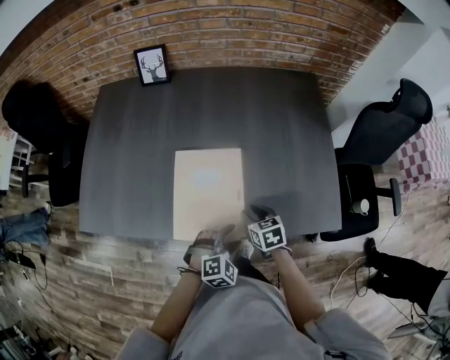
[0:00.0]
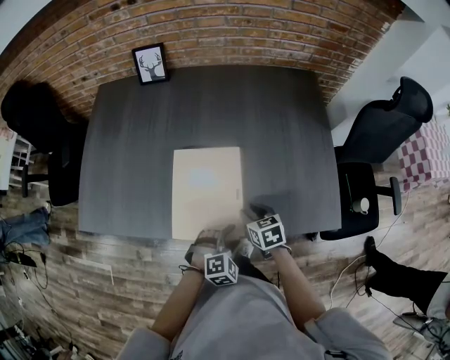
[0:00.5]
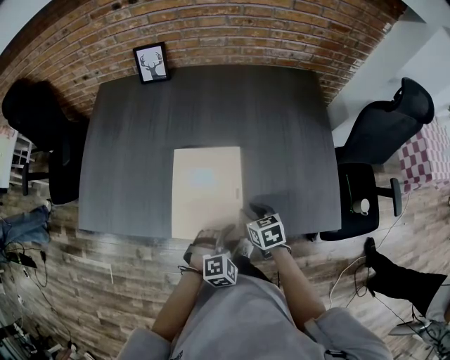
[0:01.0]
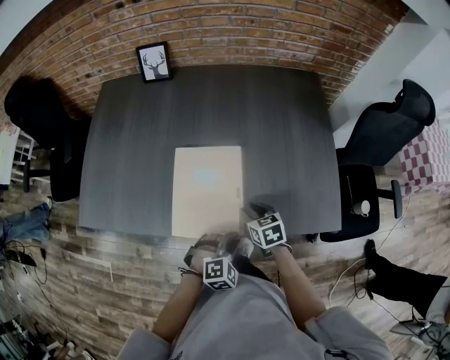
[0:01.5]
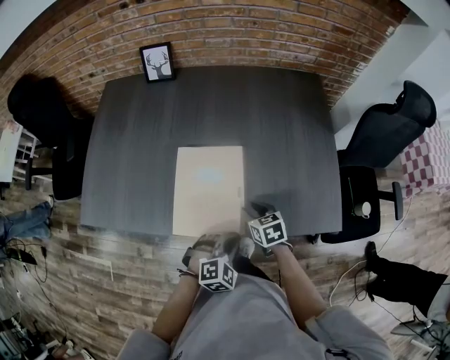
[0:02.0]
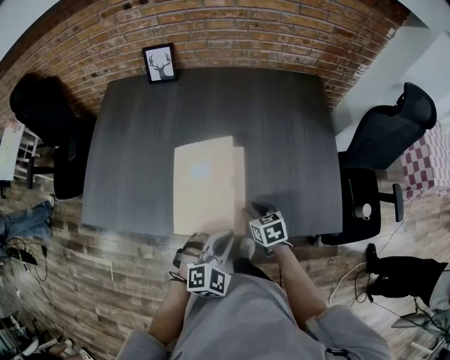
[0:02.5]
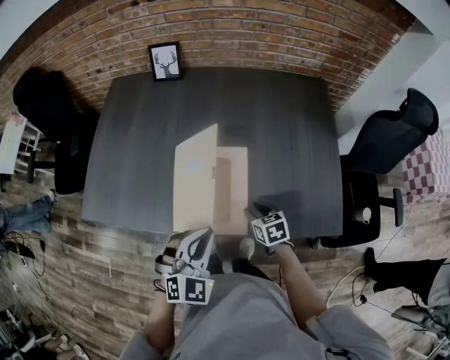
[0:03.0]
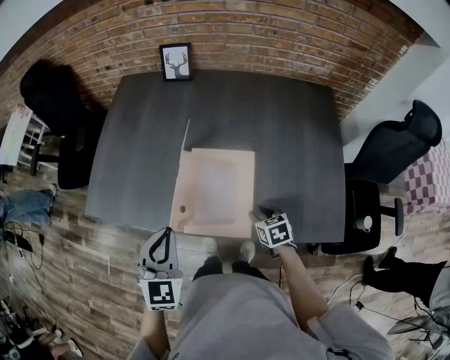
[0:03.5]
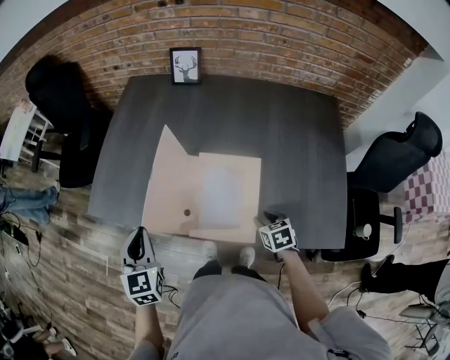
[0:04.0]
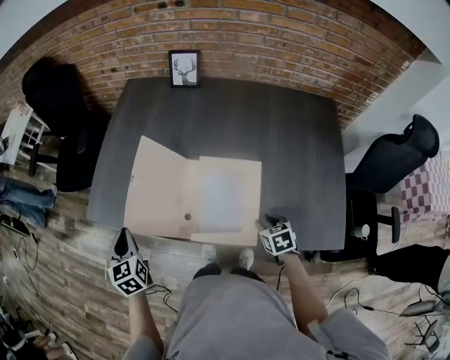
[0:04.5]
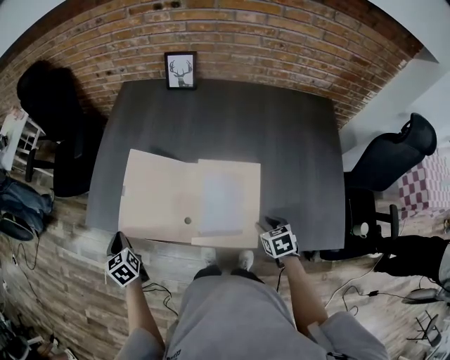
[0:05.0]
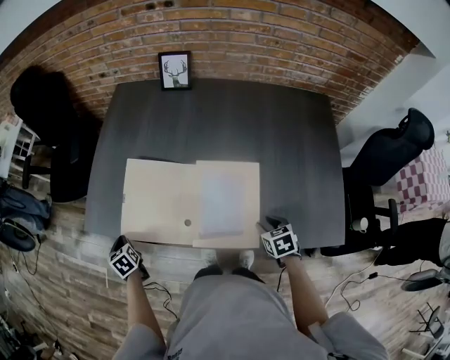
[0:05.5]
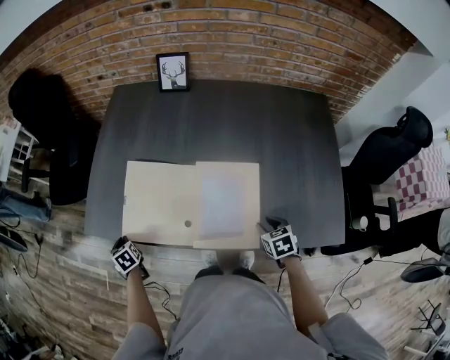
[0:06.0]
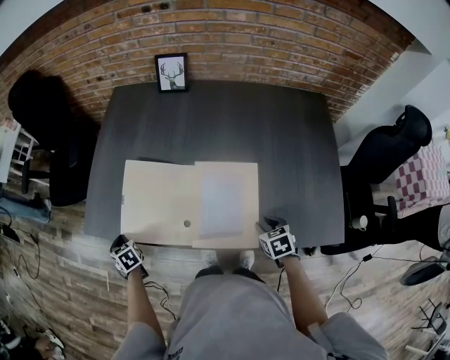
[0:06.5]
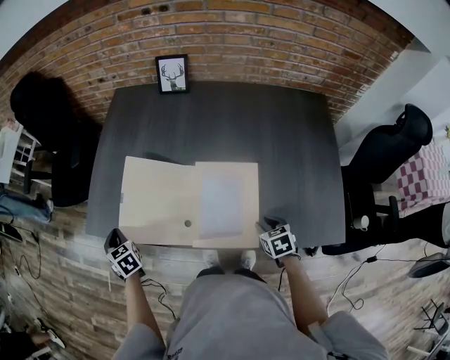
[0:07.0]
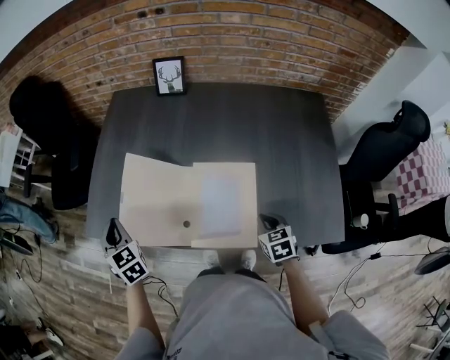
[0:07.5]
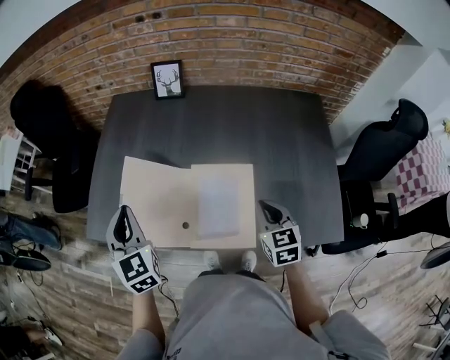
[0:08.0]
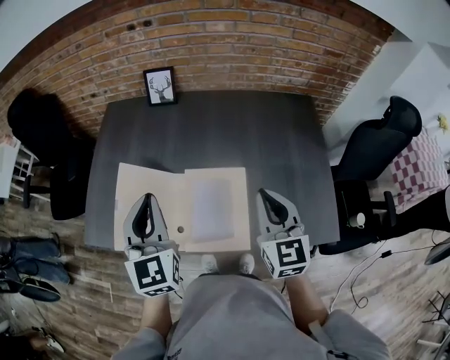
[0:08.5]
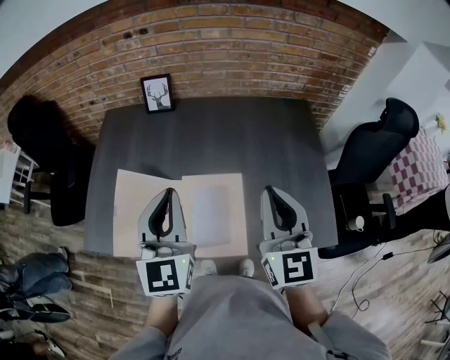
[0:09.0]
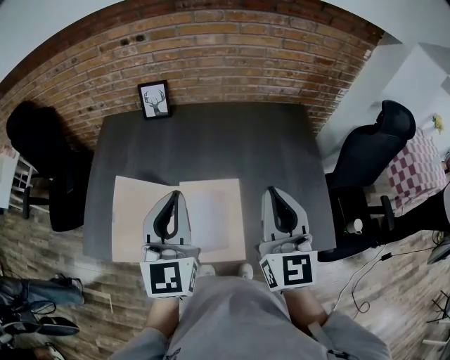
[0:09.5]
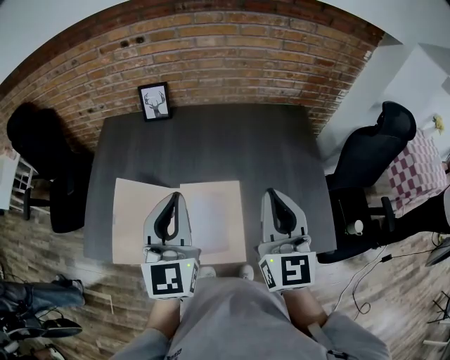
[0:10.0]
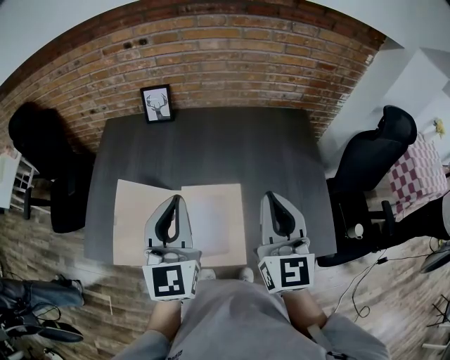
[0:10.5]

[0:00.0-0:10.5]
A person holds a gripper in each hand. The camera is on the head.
0:00.0 to 0:02.0: The left gripper closes its fingers.
0:02.0 to 0:04.0: The left gripper moves about 35 cm, and rotates approximately 70 degrees.
0:04.0 to 0:06.5: The left gripper shifts some 30 cm downward, to the left and forward, and rotates roughly 40 degrees.
0:06.5 to 0:08.5: Both grippers move upward, approximately 30 cm. The left gripper points its fingers about 40 degrees further upward. Meanwhile the right gripper points its fingers approximately 50 degrees further upward, and closes.
0:08.5 to 0:10.5: The left gripper shifts some 10 cm to the right. Meanwhile the right gripper heads upward, covering some 10 cm.

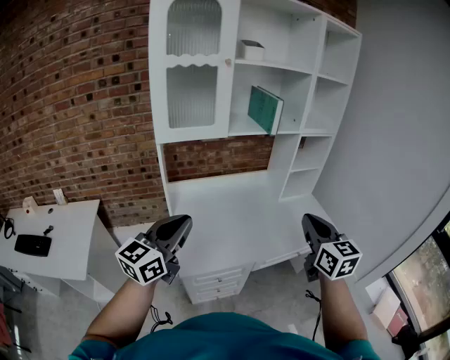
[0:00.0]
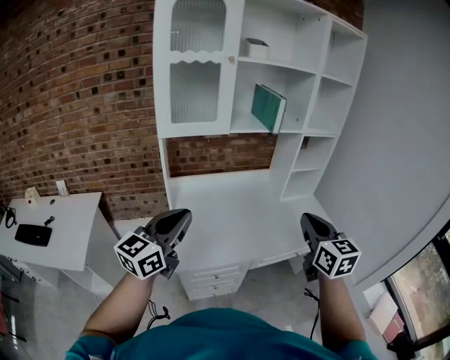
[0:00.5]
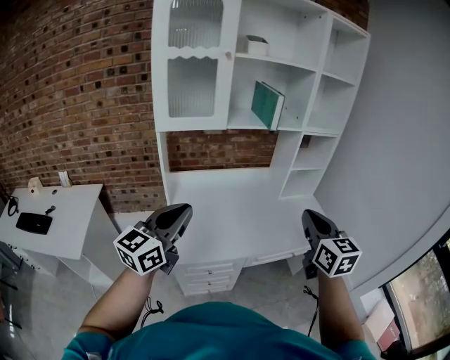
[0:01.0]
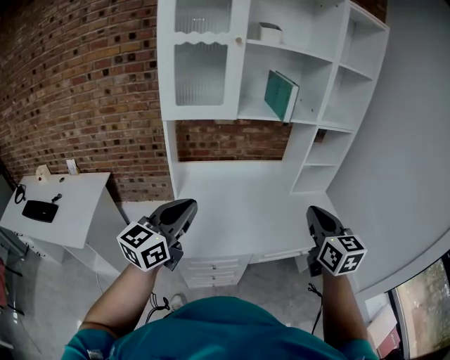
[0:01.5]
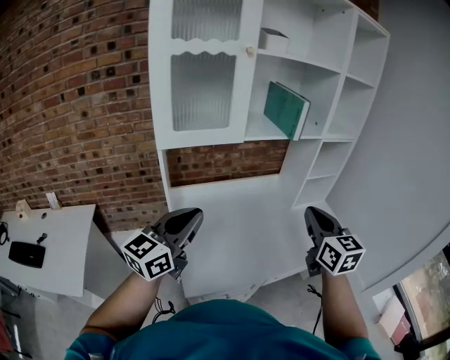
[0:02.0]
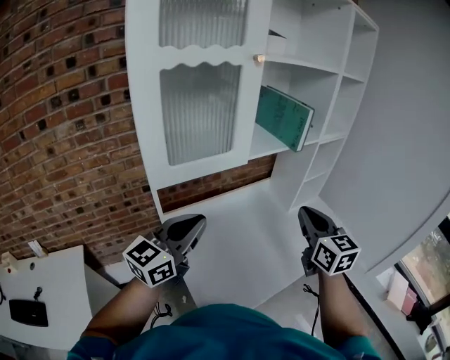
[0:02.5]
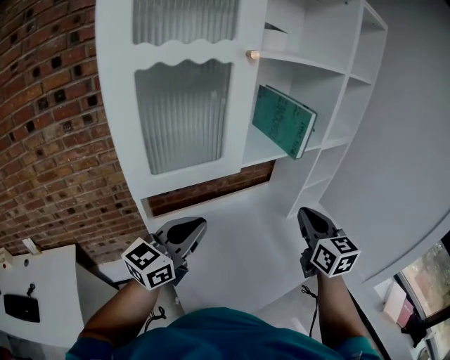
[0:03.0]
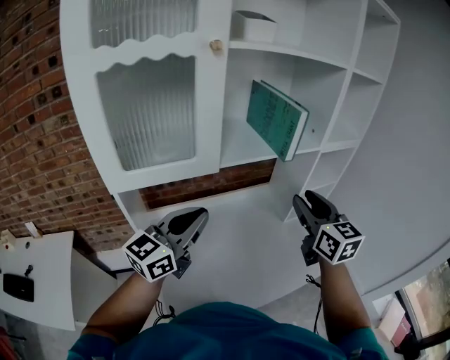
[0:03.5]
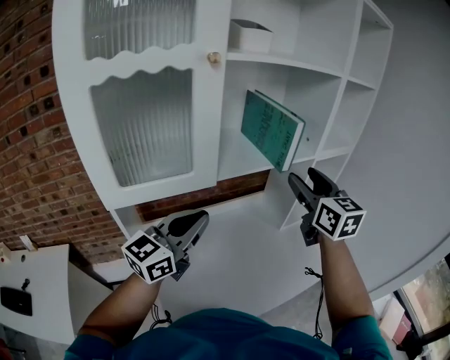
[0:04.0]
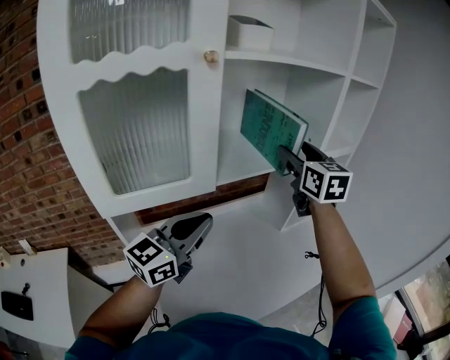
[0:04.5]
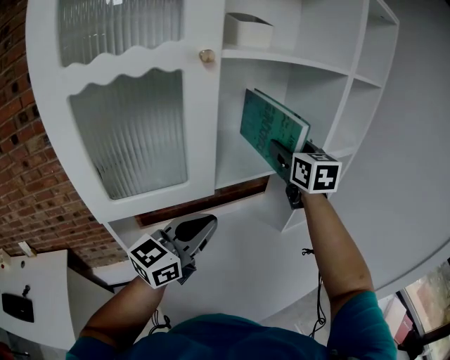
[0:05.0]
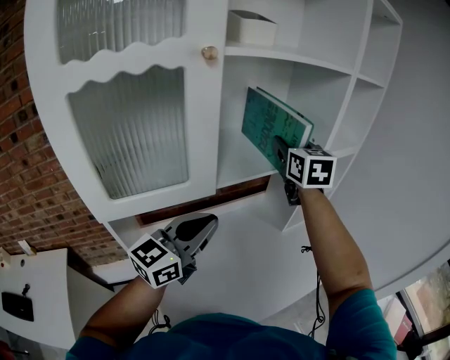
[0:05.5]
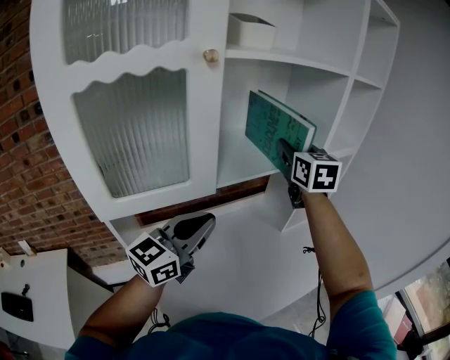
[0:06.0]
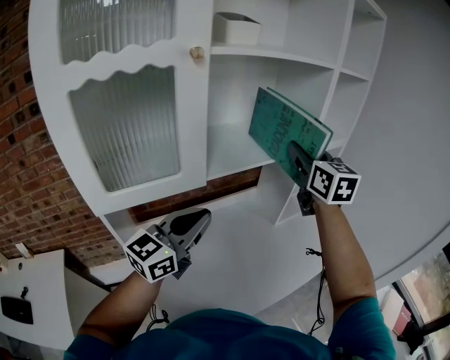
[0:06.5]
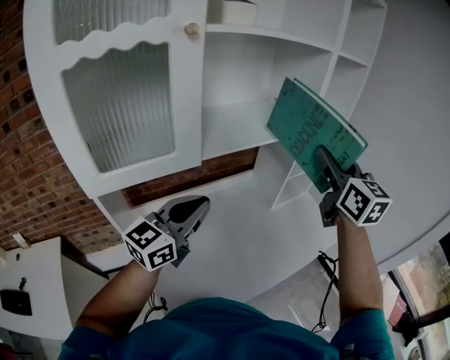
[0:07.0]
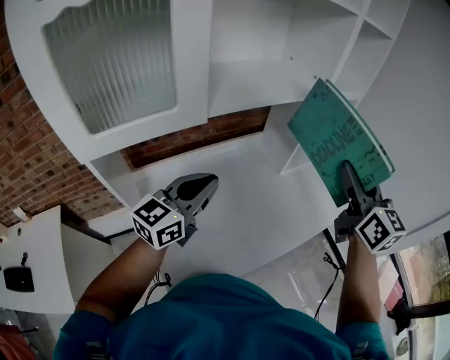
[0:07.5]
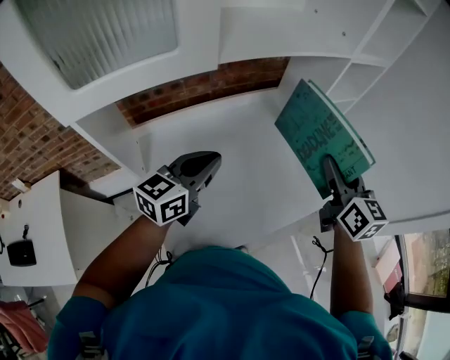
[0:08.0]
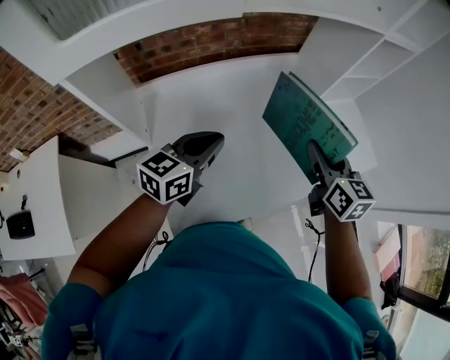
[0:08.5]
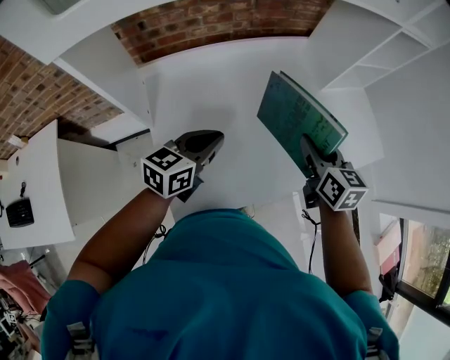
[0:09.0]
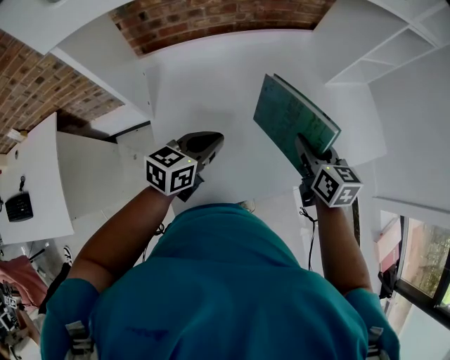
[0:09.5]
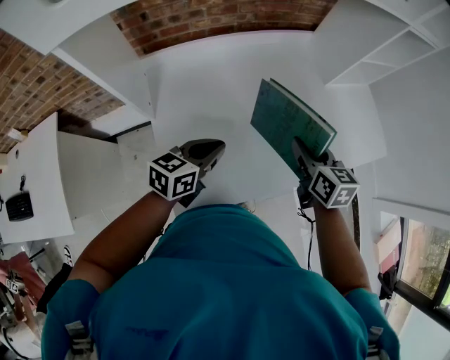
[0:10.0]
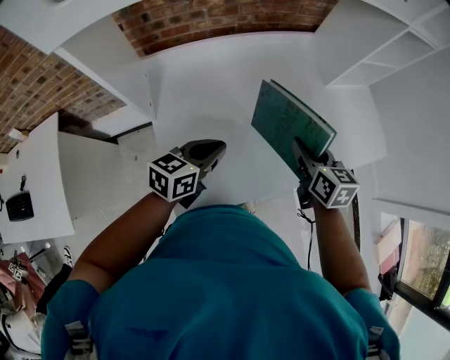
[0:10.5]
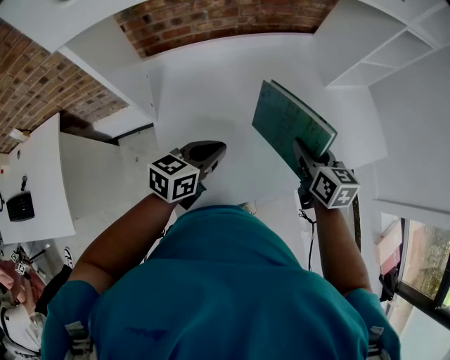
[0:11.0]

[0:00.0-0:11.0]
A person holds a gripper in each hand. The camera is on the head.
0:00.0 to 0:02.0: The left gripper moves forward, approximately 10 cm, while the right gripper heads forward and to the left, covering about 15 cm.
0:02.0 to 0:03.5: Both grippers travel together forward, roughly 20 cm. The right gripper opens.
0:03.5 to 0:05.5: The left gripper heads forward, covering some 5 cm; the right gripper moves forward, upward and to the left, approximately 20 cm.
0:05.5 to 0:07.5: The left gripper heads downward, covering approximately 10 cm. Meanwhile the right gripper moves to the right and backward, roughly 25 cm.
0:07.5 to 0:09.0: The two grippers go approximately 25 cm downward. The left gripper changes its angle by approximately 30 degrees; the right gripper swivels some 30 degrees.
0:09.0 to 0:11.0: The grippers stay close to where they were, moving slightly.

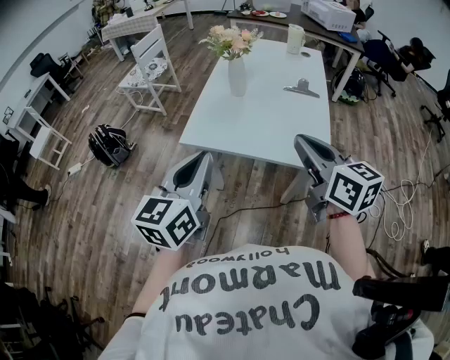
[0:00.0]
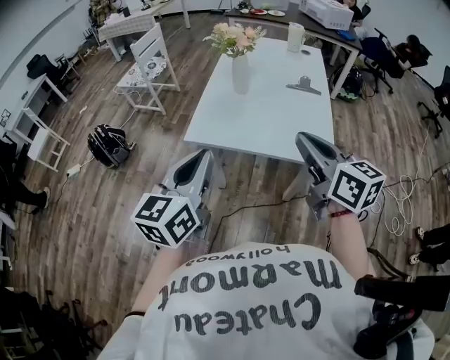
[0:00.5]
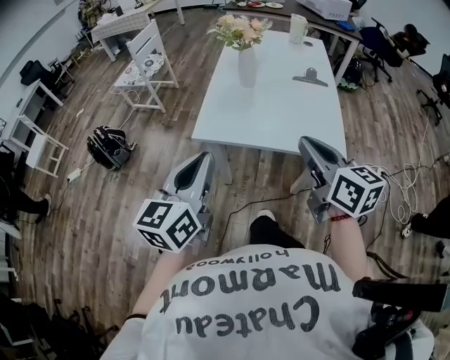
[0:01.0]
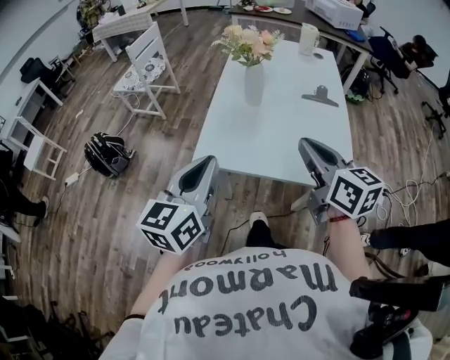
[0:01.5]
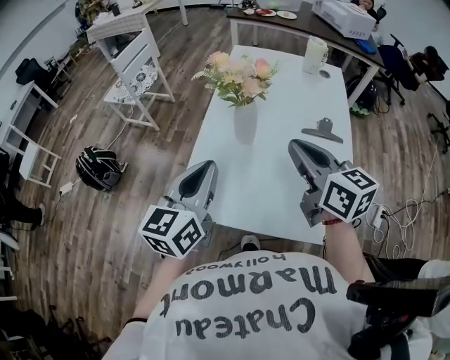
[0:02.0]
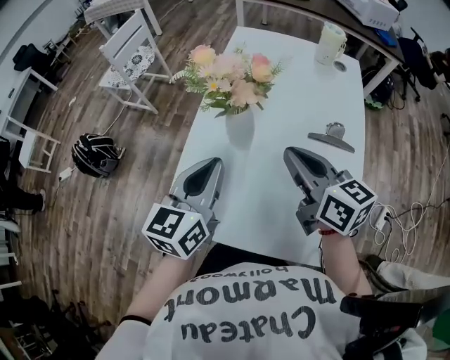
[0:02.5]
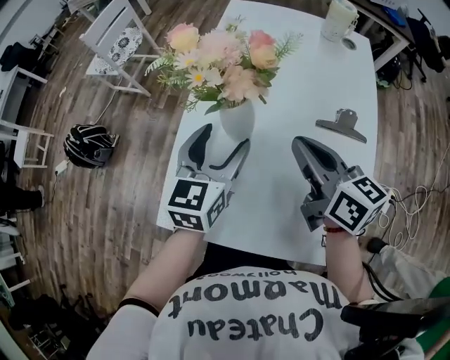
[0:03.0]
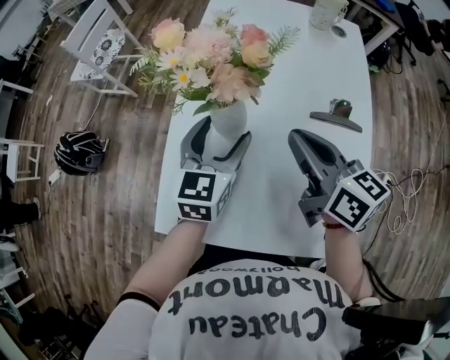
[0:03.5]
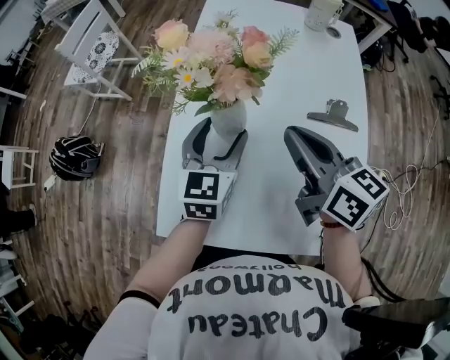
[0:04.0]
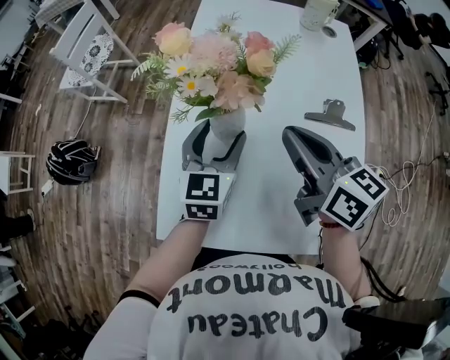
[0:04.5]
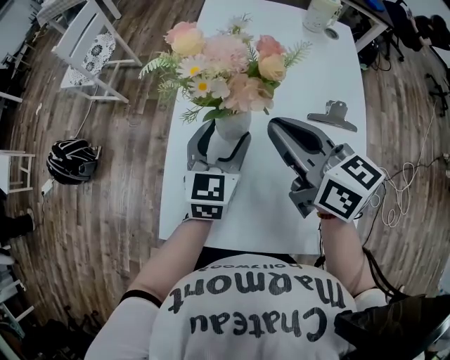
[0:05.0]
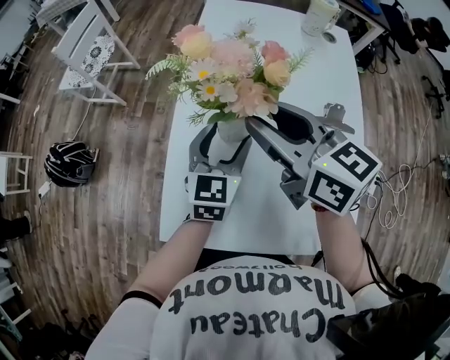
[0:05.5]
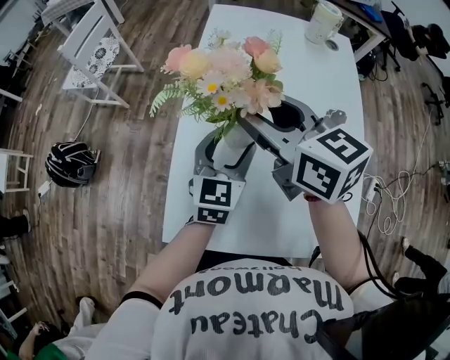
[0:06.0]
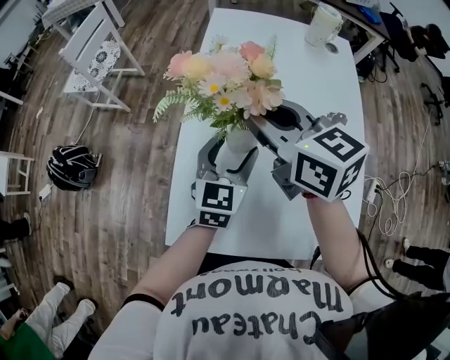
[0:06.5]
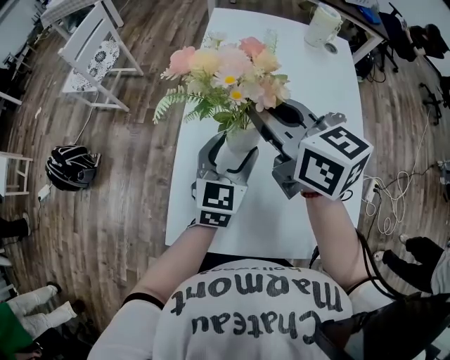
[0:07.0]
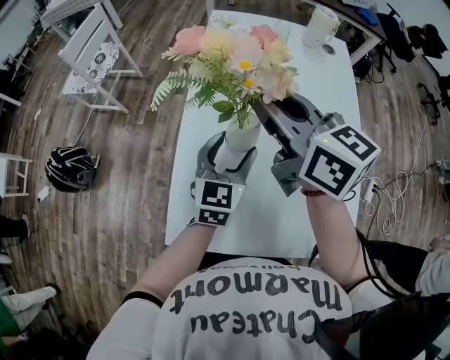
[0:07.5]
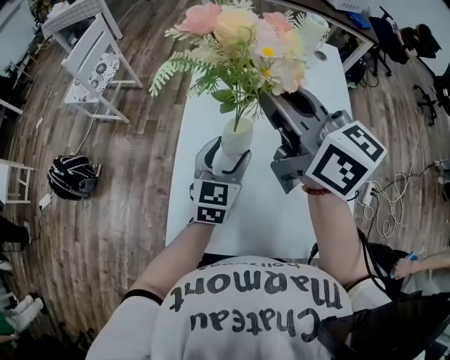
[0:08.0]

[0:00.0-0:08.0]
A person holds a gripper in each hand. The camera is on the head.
0:00.0 to 0:02.0: The grippers both shift forward by some 30 cm.
0:02.0 to 0:04.0: The left gripper is displaced forward, downward and to the right by about 25 cm, and opens. The right gripper moves forward and downward, about 15 cm.
0:04.0 to 0:06.0: The right gripper is displaced to the left and forward by about 10 cm, and opens its fingers.
0:06.0 to 0:08.0: The right gripper shifts about 10 cm upward, and closes.
